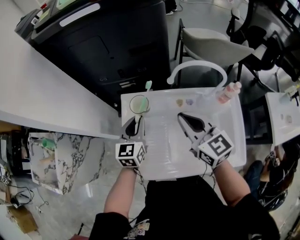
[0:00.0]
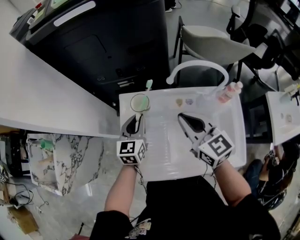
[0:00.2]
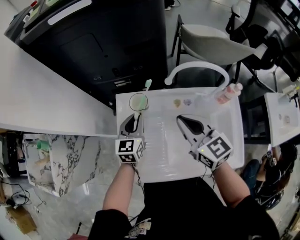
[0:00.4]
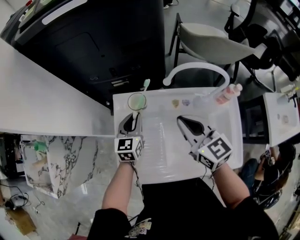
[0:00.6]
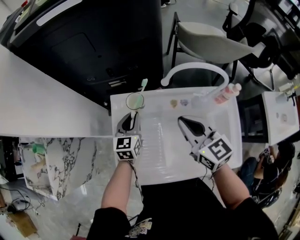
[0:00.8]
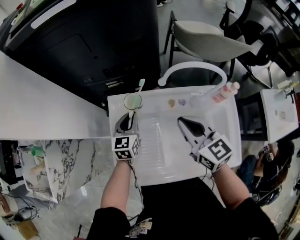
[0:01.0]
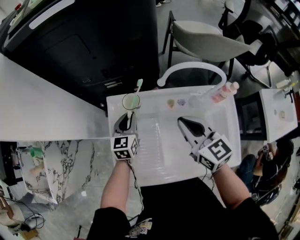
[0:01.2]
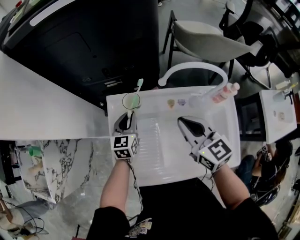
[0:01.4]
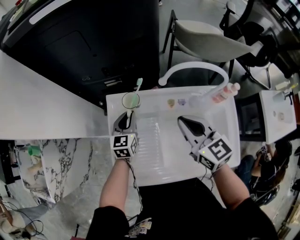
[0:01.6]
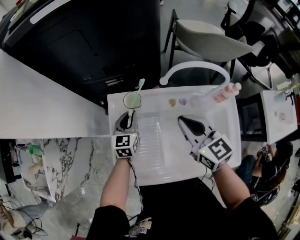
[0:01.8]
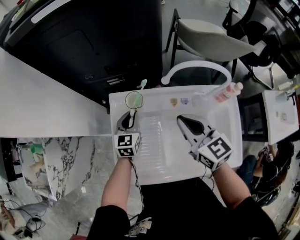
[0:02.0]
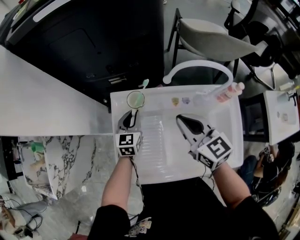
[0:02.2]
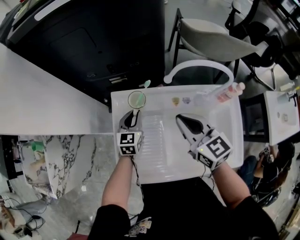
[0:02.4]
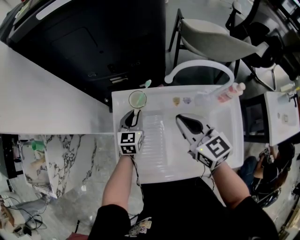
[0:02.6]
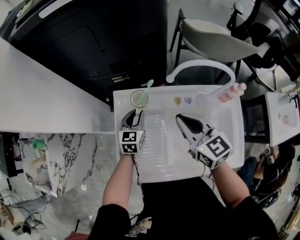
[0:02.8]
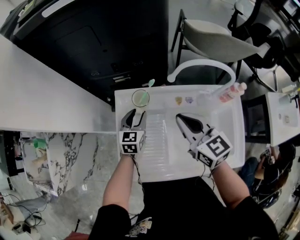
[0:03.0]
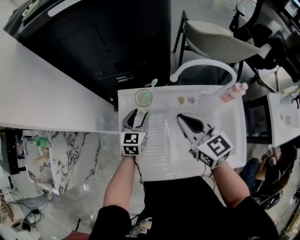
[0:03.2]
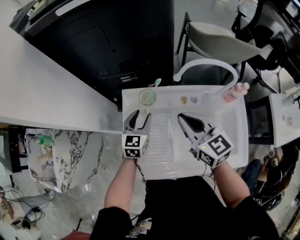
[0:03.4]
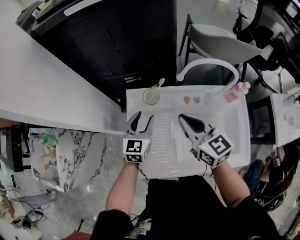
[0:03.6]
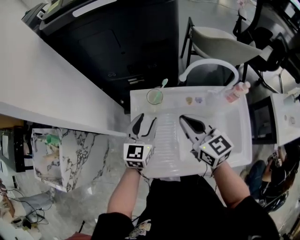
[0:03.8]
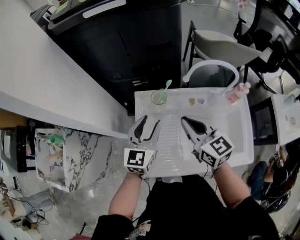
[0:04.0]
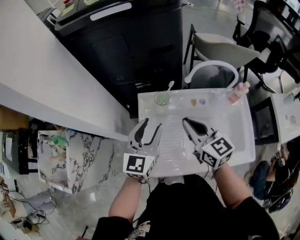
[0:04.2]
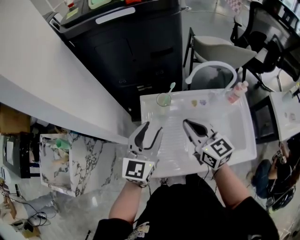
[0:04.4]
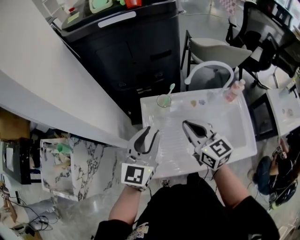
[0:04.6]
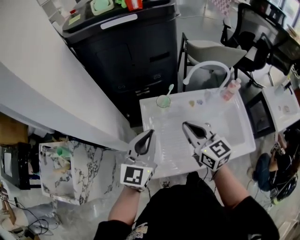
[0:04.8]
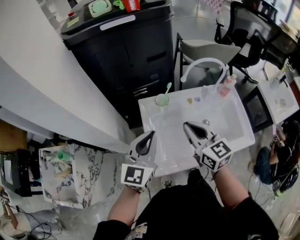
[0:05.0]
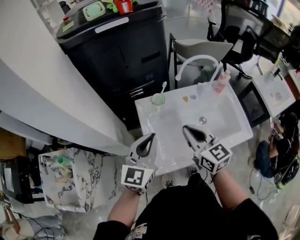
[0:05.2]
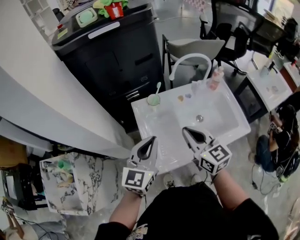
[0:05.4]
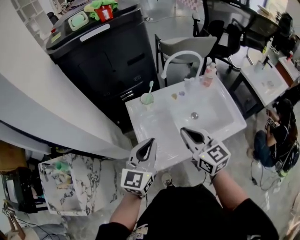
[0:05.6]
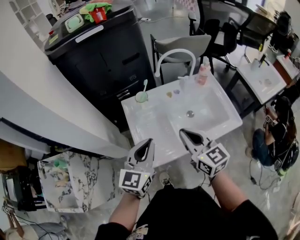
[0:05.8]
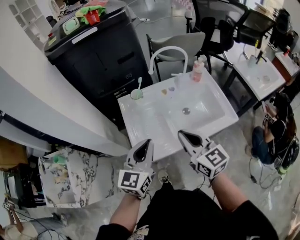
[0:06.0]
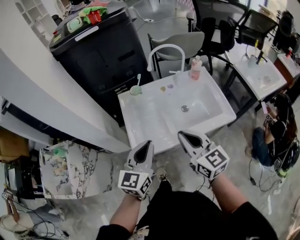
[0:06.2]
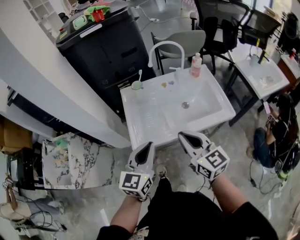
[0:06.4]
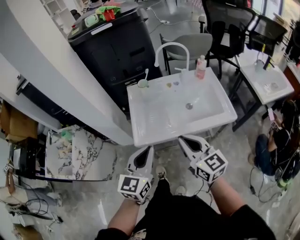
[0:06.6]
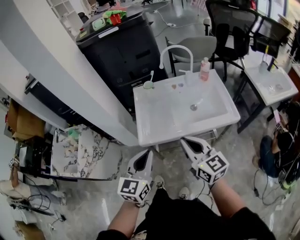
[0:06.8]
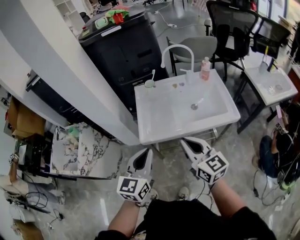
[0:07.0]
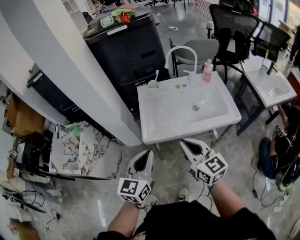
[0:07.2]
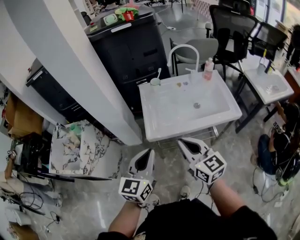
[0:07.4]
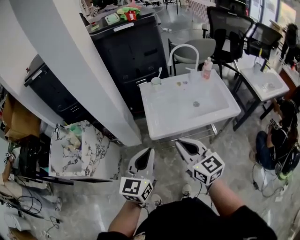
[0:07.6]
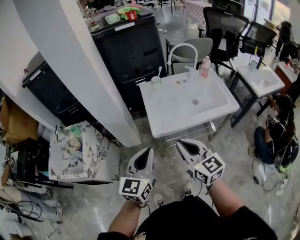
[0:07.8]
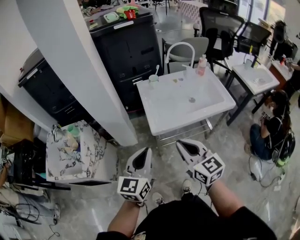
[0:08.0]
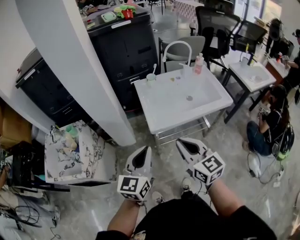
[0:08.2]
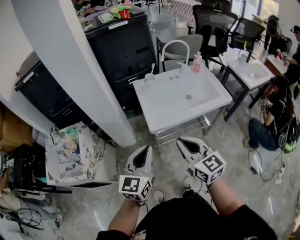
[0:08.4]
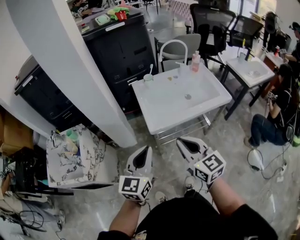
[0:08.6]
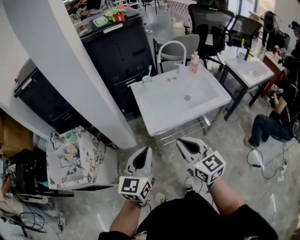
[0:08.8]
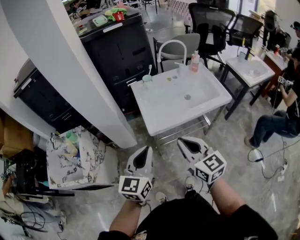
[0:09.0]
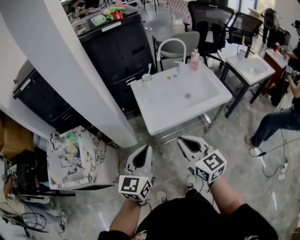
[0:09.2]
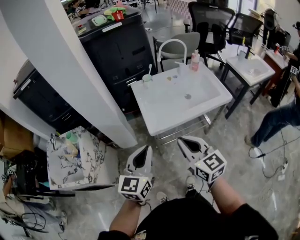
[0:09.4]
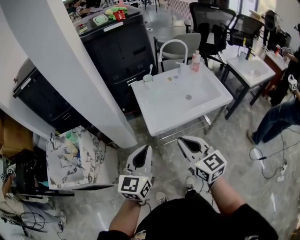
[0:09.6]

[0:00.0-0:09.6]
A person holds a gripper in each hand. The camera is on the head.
0:00.0 to 0:01.6: The left gripper shifts some 10 cm downward and forward, while the right gripper ends up about 5 cm from where it was.
0:01.6 to 0:03.2: The left gripper opens its fingers.
0:03.2 to 0:04.8: The right gripper goes about 15 cm to the left, backward and upward; the left gripper shifts some 30 cm upward and backward, swivels roughly 20 degrees, and closes.
0:04.8 to 0:06.4: Both grippers move backward and to the right, about 30 cm.
0:06.4 to 0:08.0: The two grippers go roughly 25 cm to the left and backward.
0:08.0 to 0:09.6: The grippers move only a little.

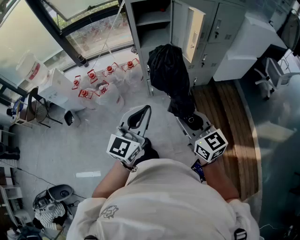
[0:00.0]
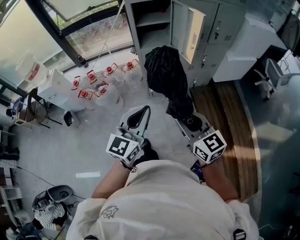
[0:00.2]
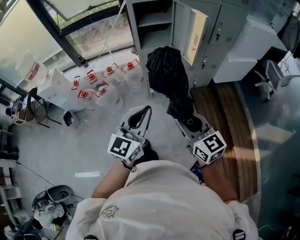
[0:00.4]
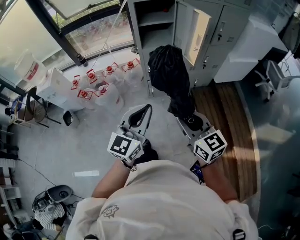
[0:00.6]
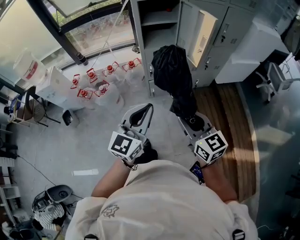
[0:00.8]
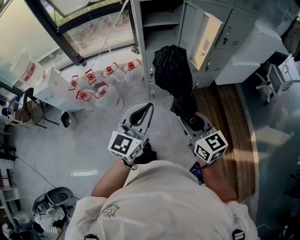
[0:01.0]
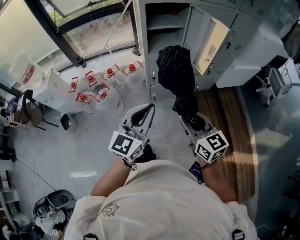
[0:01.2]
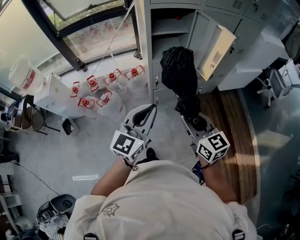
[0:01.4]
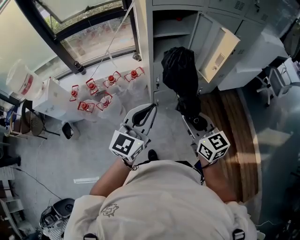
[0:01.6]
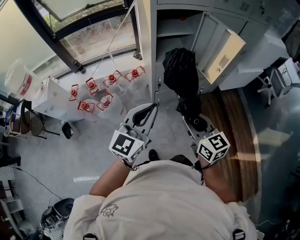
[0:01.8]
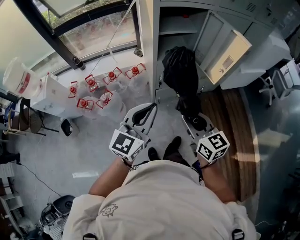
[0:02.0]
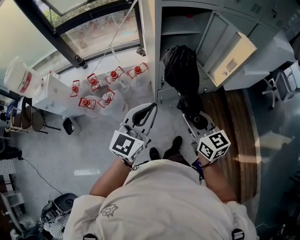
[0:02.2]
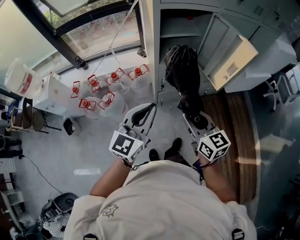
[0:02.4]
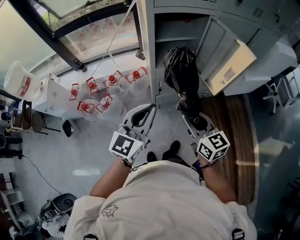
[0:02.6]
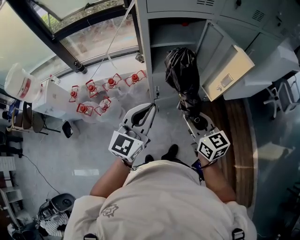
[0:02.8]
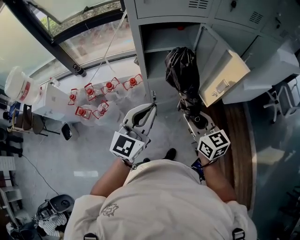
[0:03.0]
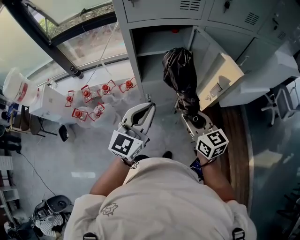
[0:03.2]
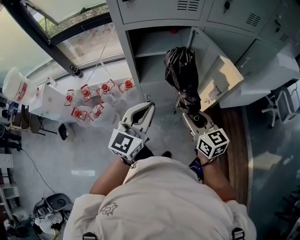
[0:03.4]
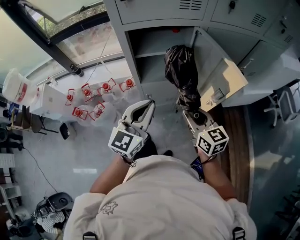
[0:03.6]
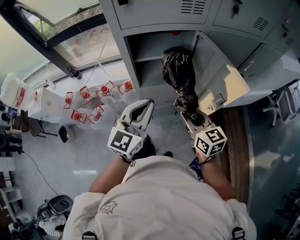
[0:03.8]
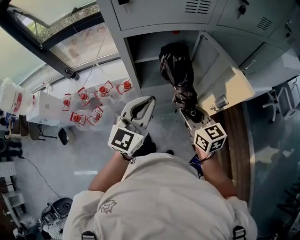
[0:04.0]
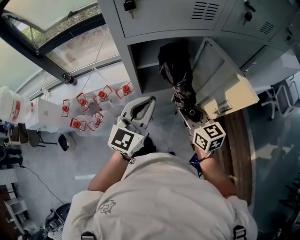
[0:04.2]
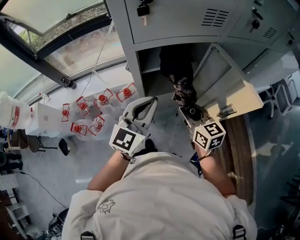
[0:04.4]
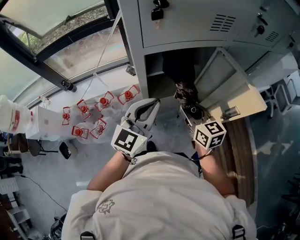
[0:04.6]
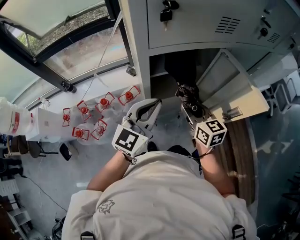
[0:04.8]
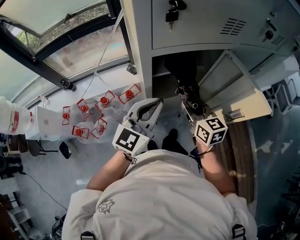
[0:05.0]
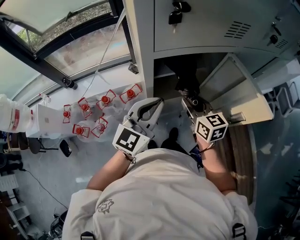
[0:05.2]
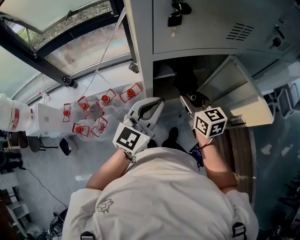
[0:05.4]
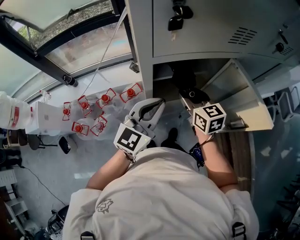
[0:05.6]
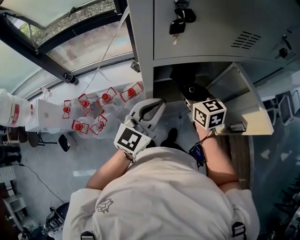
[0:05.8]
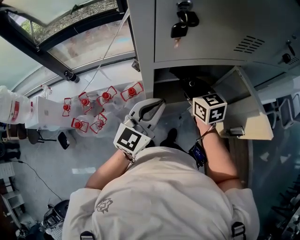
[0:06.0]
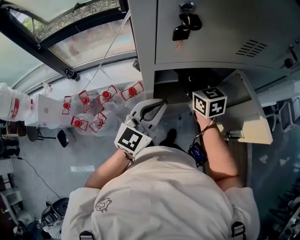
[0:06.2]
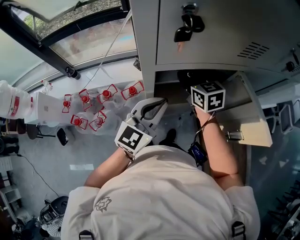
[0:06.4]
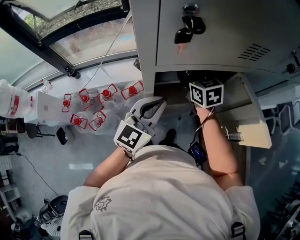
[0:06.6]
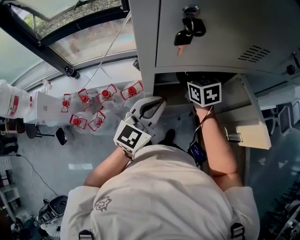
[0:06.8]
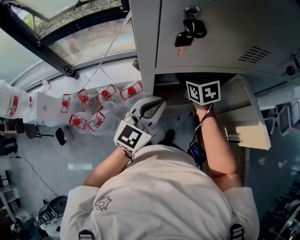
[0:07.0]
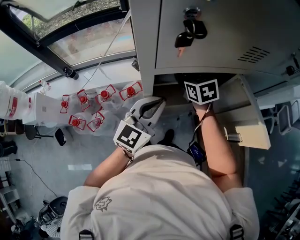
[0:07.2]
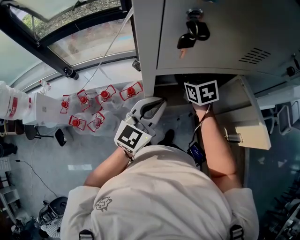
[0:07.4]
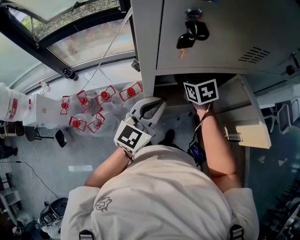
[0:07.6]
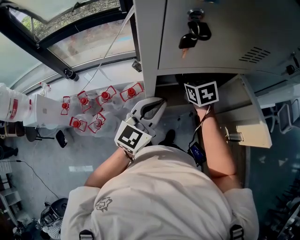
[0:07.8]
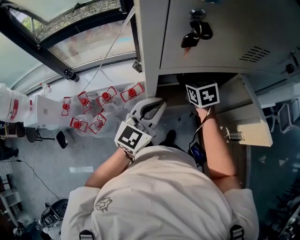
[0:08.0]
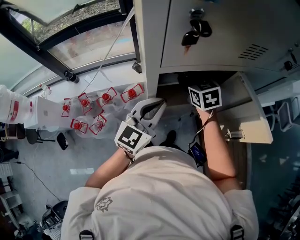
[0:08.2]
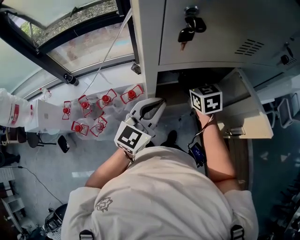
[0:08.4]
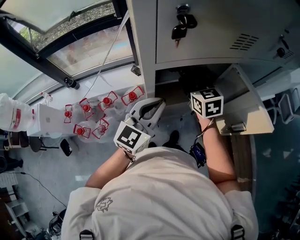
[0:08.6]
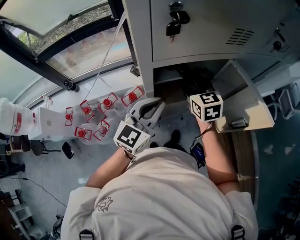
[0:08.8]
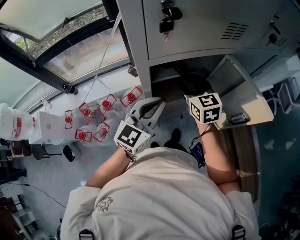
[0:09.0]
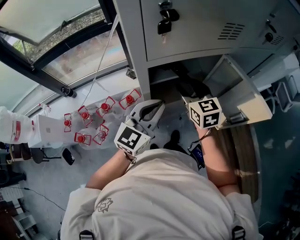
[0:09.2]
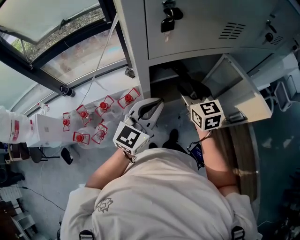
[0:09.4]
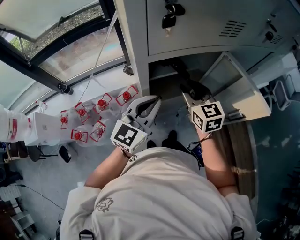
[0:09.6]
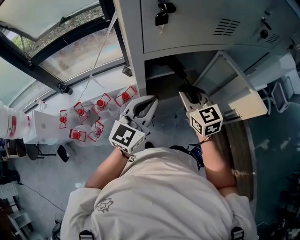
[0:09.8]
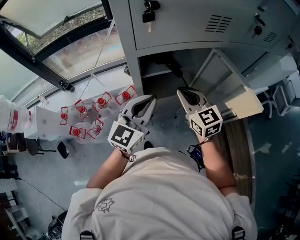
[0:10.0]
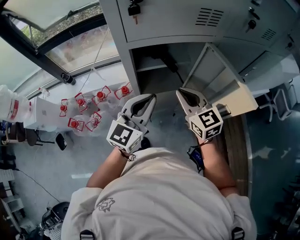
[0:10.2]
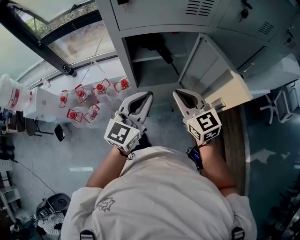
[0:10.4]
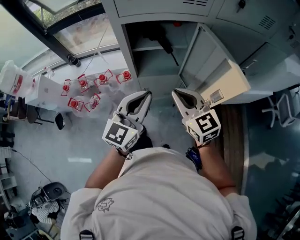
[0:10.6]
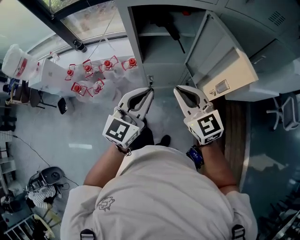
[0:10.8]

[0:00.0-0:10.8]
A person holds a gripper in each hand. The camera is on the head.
0:00.0 to 0:01.6: Both grippers travel together forward and to the left, about 25 cm.
0:01.6 to 0:03.0: The two grippers go some 20 cm forward and to the right.
0:03.0 to 0:04.6: Both grippers move forward, some 20 cm.
0:04.6 to 0:06.2: The left gripper is displaced forward by approximately 5 cm. Meanwhile the right gripper heads forward, covering roughly 15 cm.
0:06.2 to 0:07.8: The right gripper moves about 5 cm.
0:07.8 to 0:09.2: The right gripper is displaced backward by approximately 10 cm.
0:09.2 to 0:10.8: The right gripper changes place by about 25 cm, turns by about 30 degrees, and closes up. The left gripper shifts by some 15 cm, and rotates approximately 20 degrees.

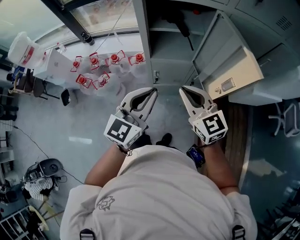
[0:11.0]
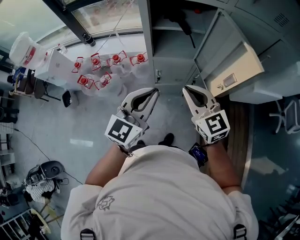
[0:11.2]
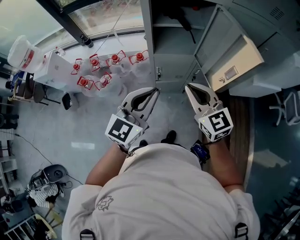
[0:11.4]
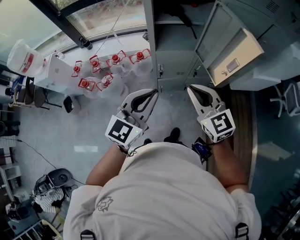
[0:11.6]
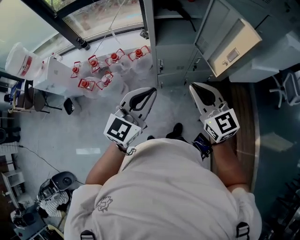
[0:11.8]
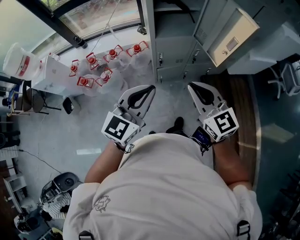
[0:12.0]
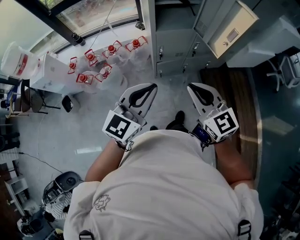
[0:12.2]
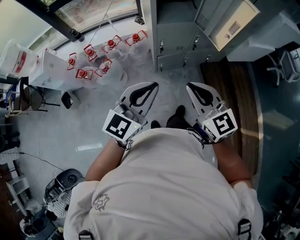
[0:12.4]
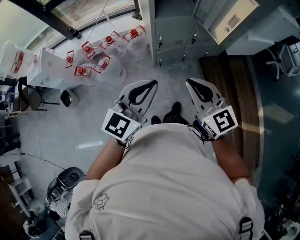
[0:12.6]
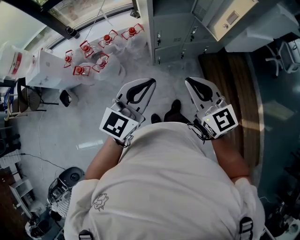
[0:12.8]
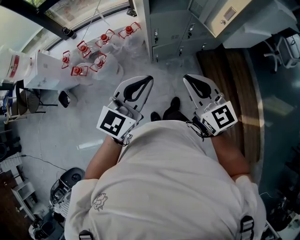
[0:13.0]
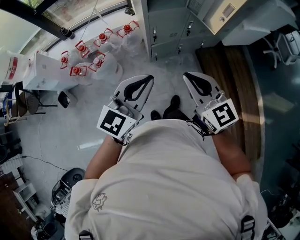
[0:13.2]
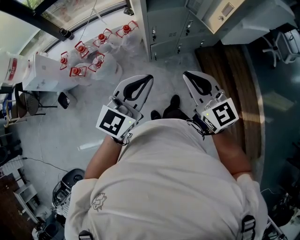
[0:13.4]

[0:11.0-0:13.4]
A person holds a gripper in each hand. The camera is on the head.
0:11.0 to 0:12.2: Both grippers move backward and to the left, approximately 20 cm.
0:12.2 to 0:13.4: The right gripper heads backward, covering about 5 cm; the left gripper changes place by approximately 5 cm.

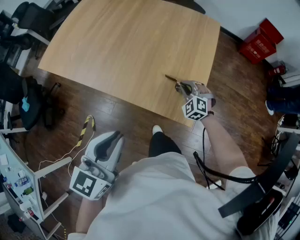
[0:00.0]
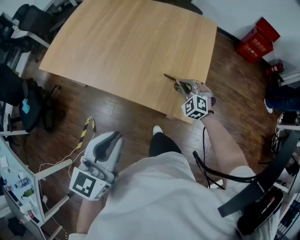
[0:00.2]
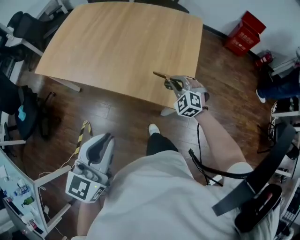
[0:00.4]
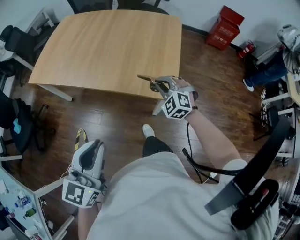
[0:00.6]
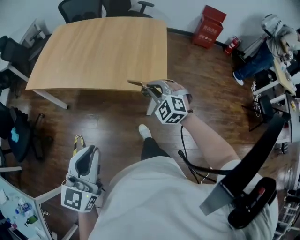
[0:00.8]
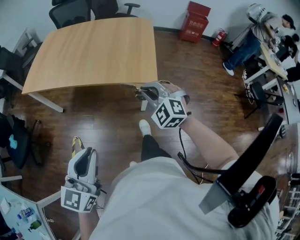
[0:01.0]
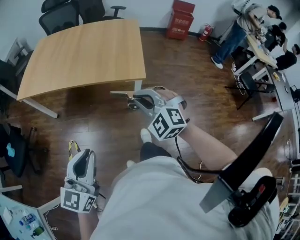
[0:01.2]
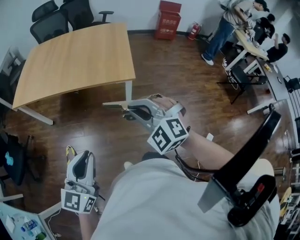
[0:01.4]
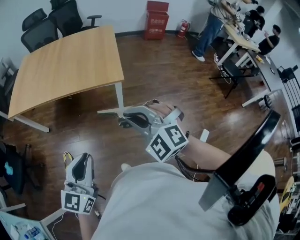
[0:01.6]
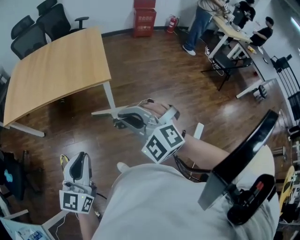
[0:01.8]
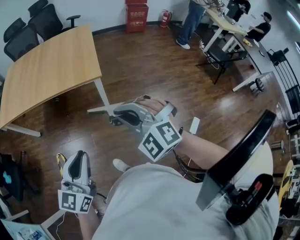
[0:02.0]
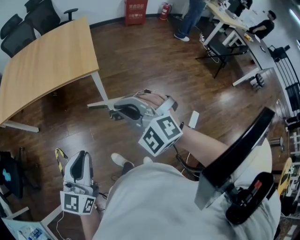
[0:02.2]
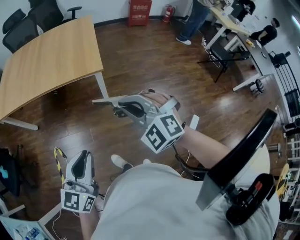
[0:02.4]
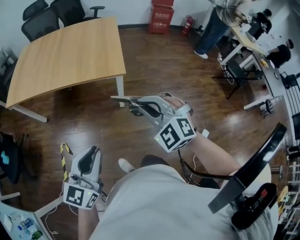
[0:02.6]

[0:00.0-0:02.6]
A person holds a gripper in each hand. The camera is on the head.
0:00.0 to 0:01.2: The left gripper moves backward, some 25 cm. The right gripper moves backward and upward, approximately 40 cm.
0:01.2 to 0:02.6: The left gripper goes roughly 10 cm to the right. The right gripper travels to the right and backward by some 15 cm.
